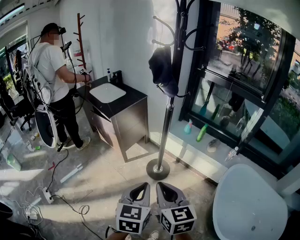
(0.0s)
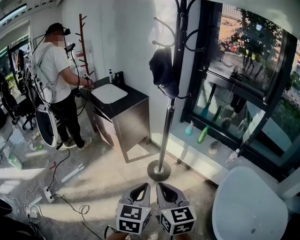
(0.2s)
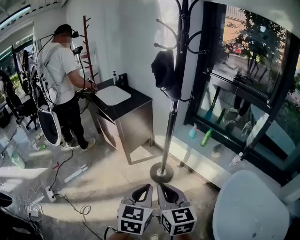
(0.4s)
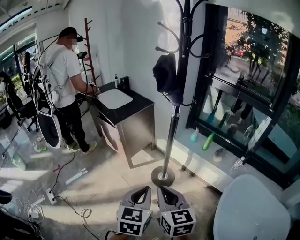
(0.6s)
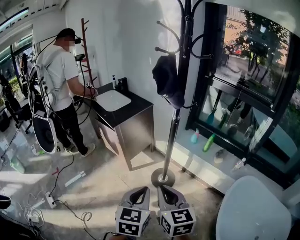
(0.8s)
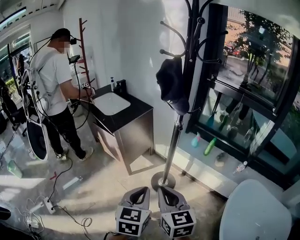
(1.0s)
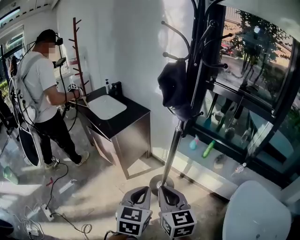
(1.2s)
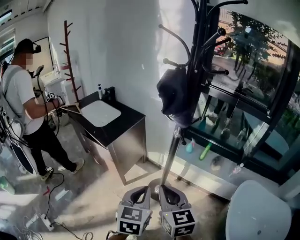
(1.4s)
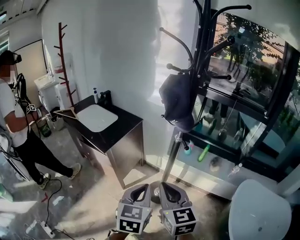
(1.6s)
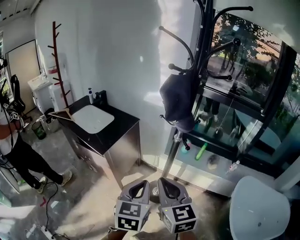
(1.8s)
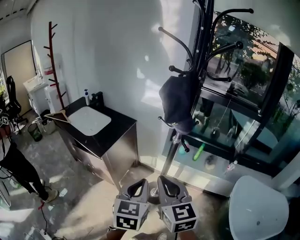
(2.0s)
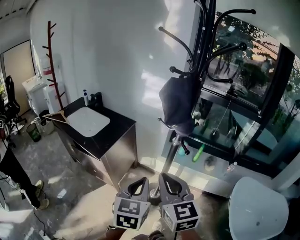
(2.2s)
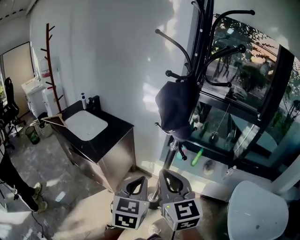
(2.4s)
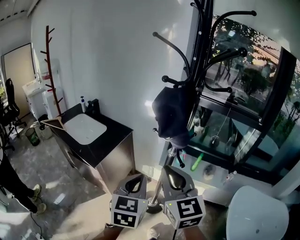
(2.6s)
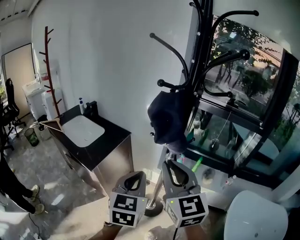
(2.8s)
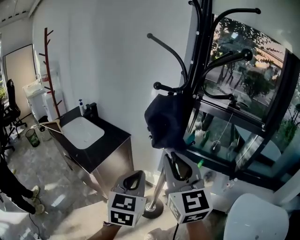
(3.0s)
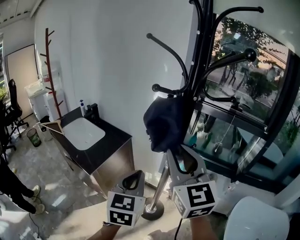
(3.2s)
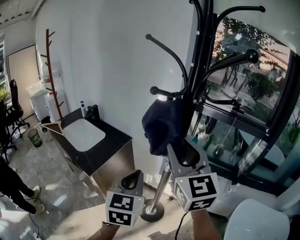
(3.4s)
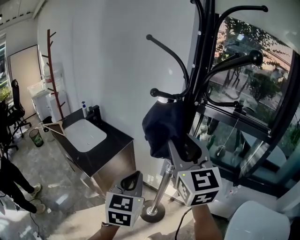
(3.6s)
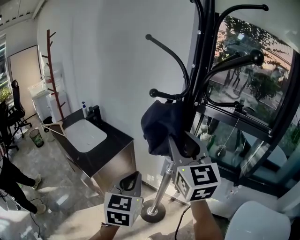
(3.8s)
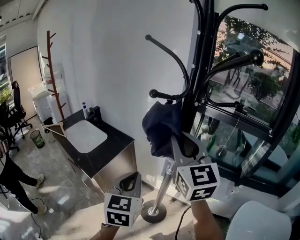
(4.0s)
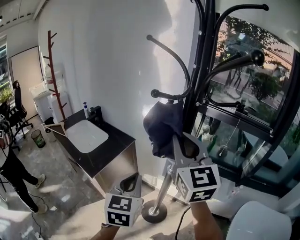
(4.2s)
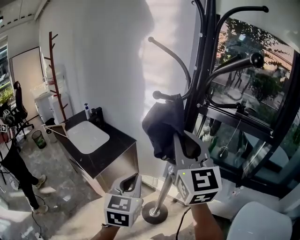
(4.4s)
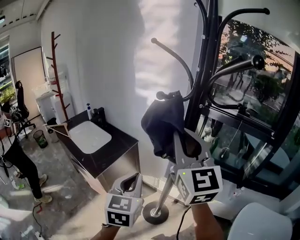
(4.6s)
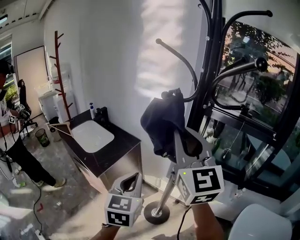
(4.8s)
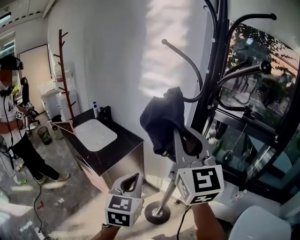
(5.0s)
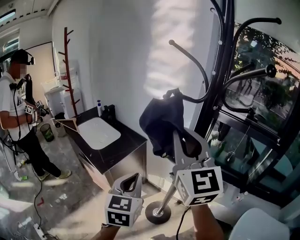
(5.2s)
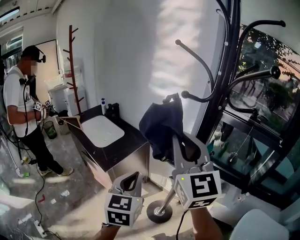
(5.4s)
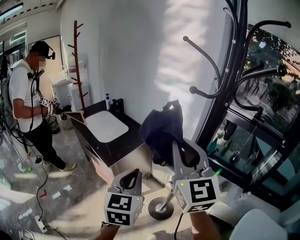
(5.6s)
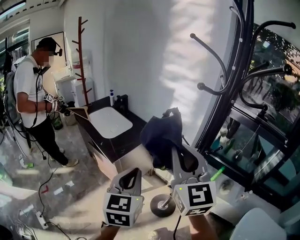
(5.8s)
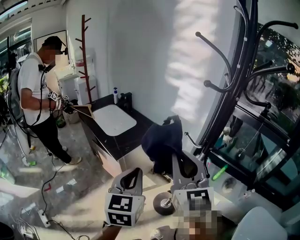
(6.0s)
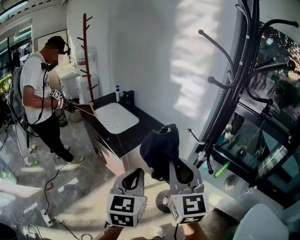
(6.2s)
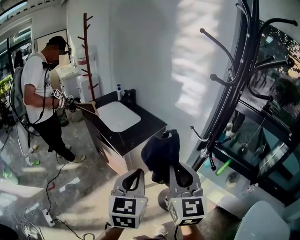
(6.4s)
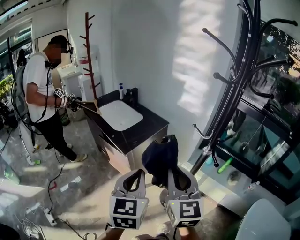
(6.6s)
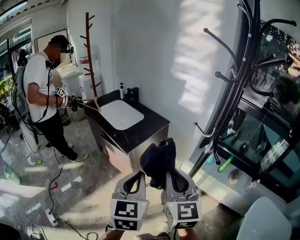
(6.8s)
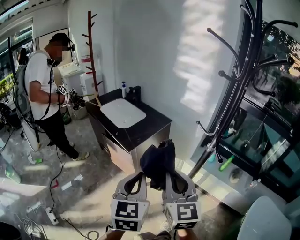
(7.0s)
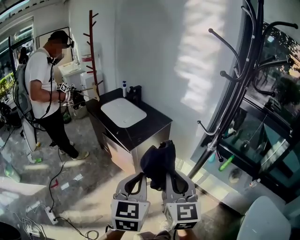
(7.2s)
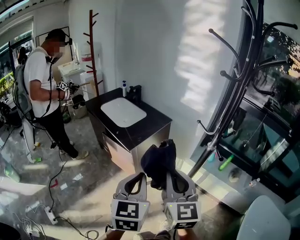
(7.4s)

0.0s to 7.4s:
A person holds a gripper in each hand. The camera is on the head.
0.0s to 1.4s: Both grippers move forward, some 20 cm.
1.4s to 3.0s: The grippers both shift forward and upward by about 25 cm. The right gripper rotates some 20 degrees.
3.0s to 4.4s: The right gripper heads forward and upward, covering about 10 cm, and opens and closes again.
4.4s to 6.0s: The left gripper travels to the left and backward by approximately 15 cm, while the right gripper heads to the left, backward and downward, covering approximately 15 cm.
6.0s to 7.4s: The left gripper shifts approximately 10 cm backward and to the left, while the right gripper heads downward, backward and to the left, covering about 15 cm.

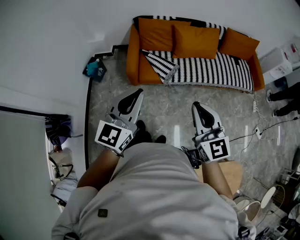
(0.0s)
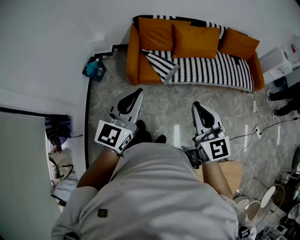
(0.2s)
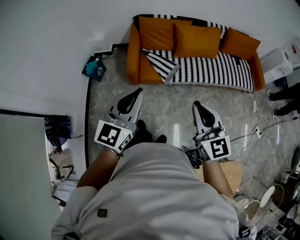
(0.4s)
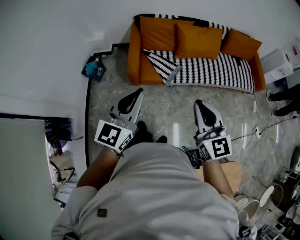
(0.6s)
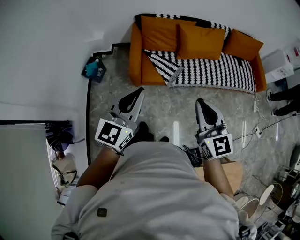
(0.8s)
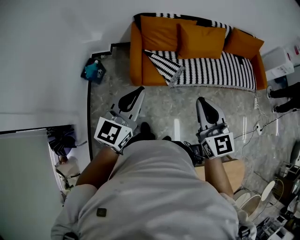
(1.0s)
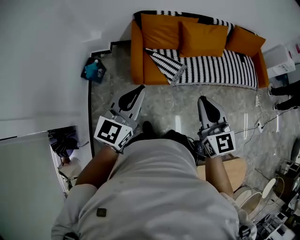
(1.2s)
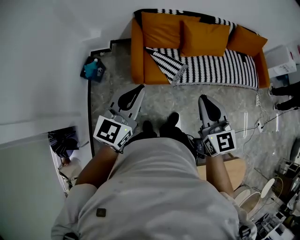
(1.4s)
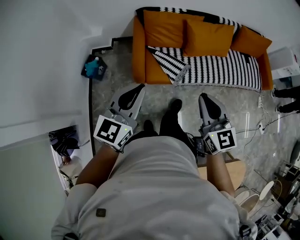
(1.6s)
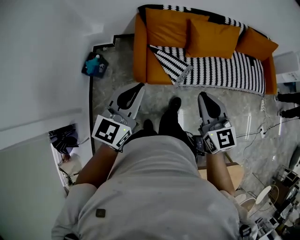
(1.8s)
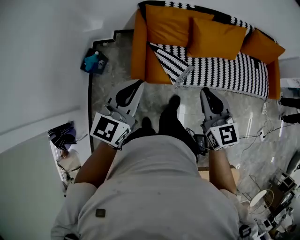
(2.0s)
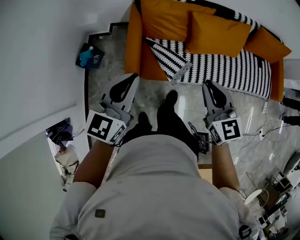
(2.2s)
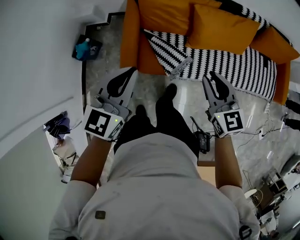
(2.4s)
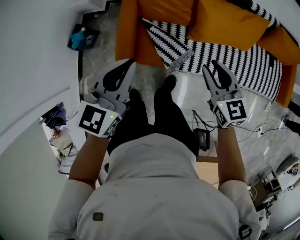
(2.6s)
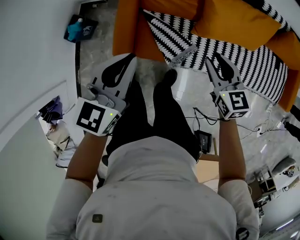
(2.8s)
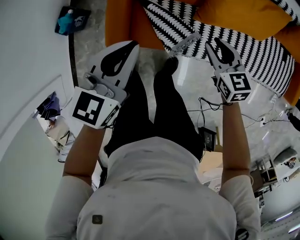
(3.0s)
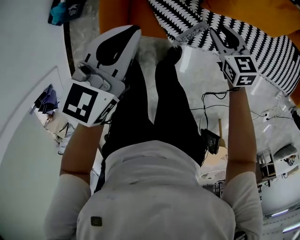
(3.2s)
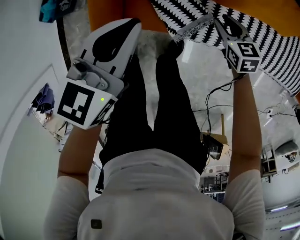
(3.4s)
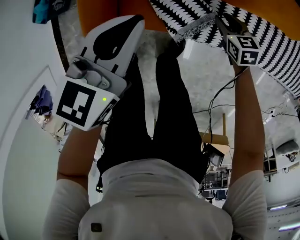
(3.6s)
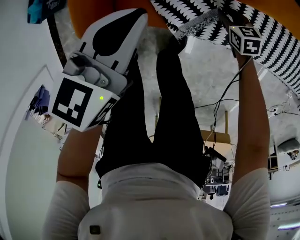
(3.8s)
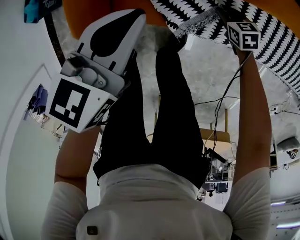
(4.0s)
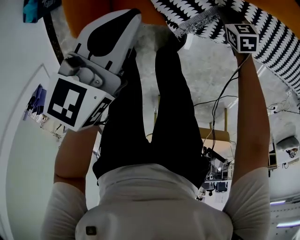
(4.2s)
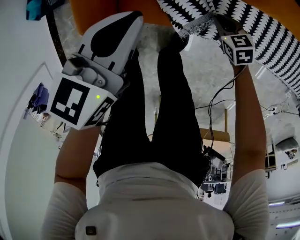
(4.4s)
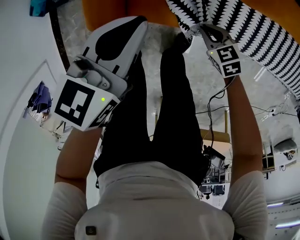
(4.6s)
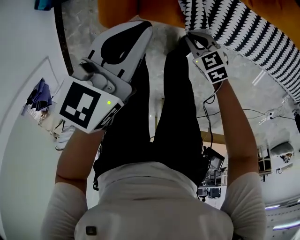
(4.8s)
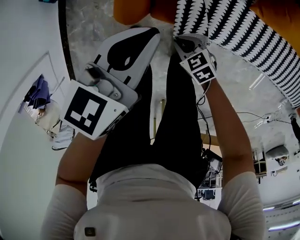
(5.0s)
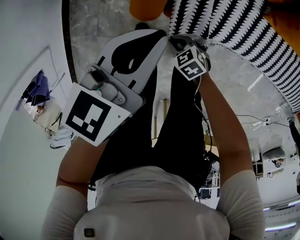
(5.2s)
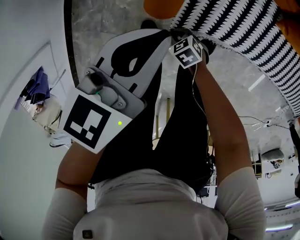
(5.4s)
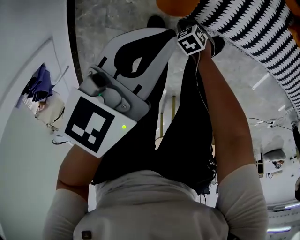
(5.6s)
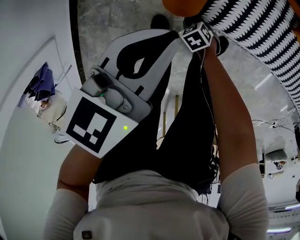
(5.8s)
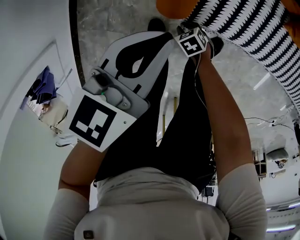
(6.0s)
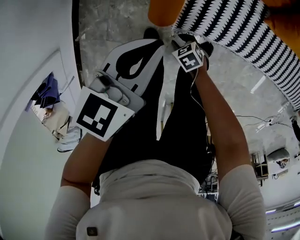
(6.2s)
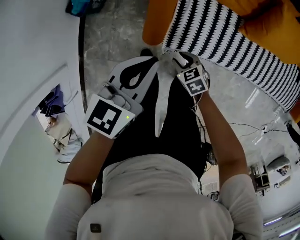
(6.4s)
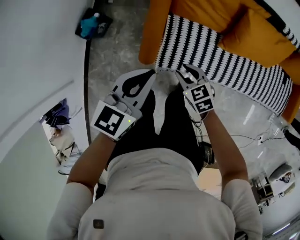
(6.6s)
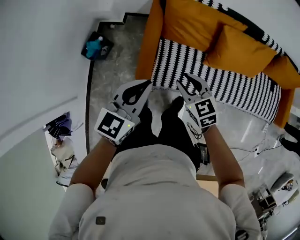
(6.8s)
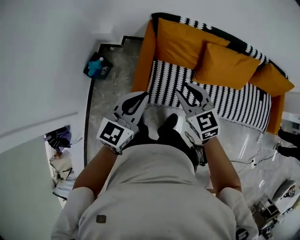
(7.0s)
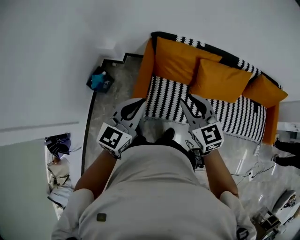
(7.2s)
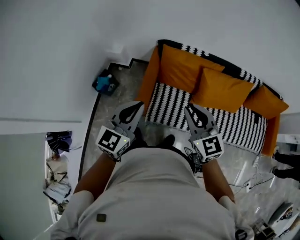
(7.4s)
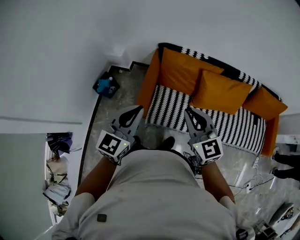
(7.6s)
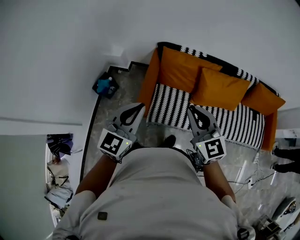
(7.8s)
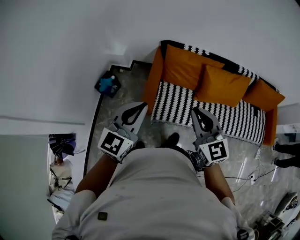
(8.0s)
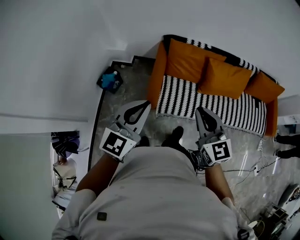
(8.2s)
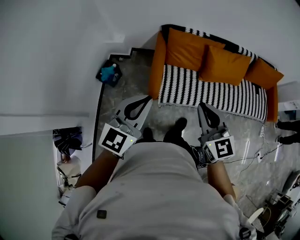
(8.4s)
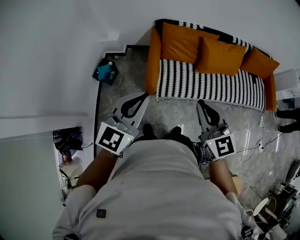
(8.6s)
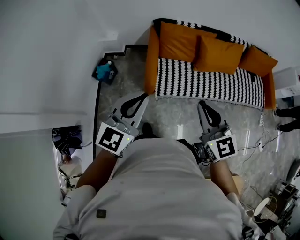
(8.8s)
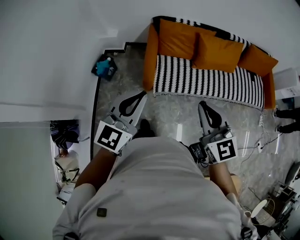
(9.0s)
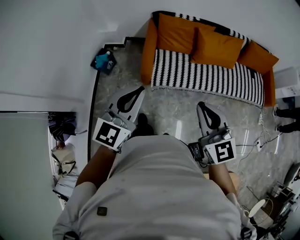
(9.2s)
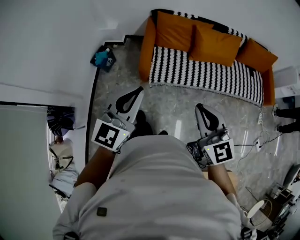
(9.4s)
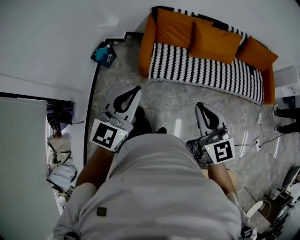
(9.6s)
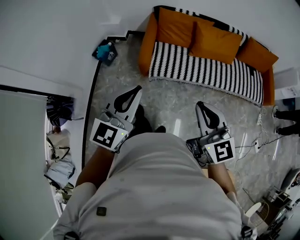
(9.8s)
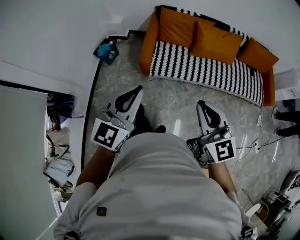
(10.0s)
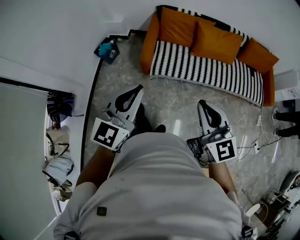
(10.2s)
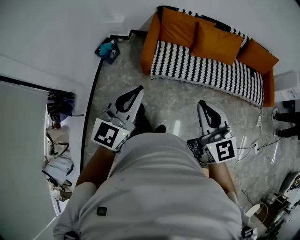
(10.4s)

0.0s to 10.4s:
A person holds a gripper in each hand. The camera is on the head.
0.0s to 1.4s: Both grippers travel together forward and to the left, about 20 cm.
1.4s to 3.0s: Both grippers travel together forward and downward, roughly 50 cm. The left gripper swivels about 20 degrees. Meanwhile the right gripper swivels about 30 degrees, and opens up.
3.0s to 4.4s: The two grippers go roughly 30 cm downward. The right gripper turns by approximately 20 degrees, and closes its fingers.
4.4s to 6.0s: The left gripper shifts by roughly 10 cm. The right gripper ends up some 20 cm from where it was, and turns by approximately 20 degrees.
6.0s to 7.4s: The left gripper is displaced upward by roughly 50 cm, and rotates about 40 degrees; the right gripper moves upward, approximately 80 cm, and angles its fingers upward, by about 50 degrees.
7.4s to 9.0s: The right gripper moves backward, some 30 cm. The left gripper is displaced backward and to the left by about 25 cm.
9.0s to 10.4s: The grippers both shift backward and to the right by about 15 cm.

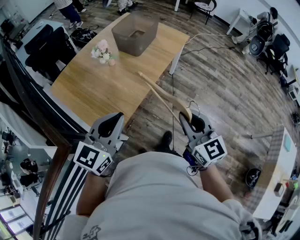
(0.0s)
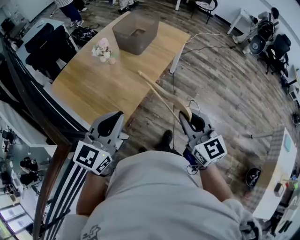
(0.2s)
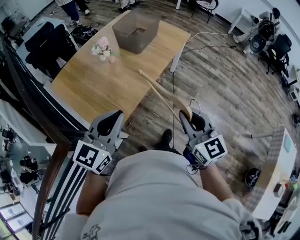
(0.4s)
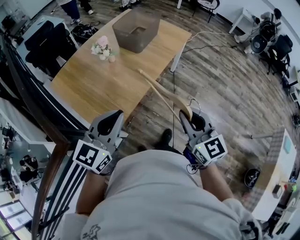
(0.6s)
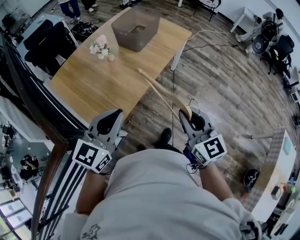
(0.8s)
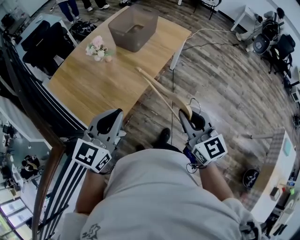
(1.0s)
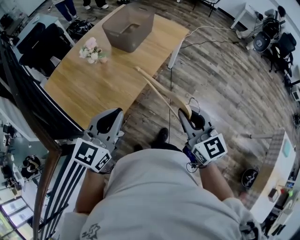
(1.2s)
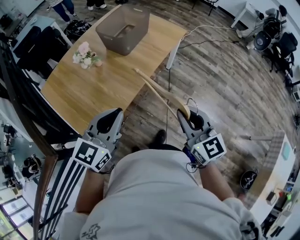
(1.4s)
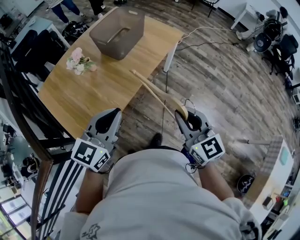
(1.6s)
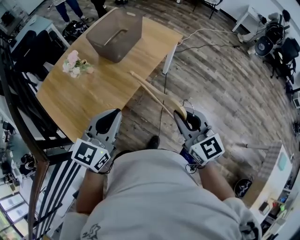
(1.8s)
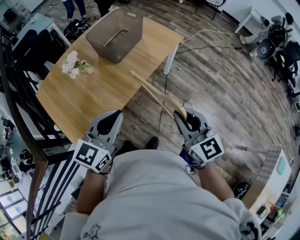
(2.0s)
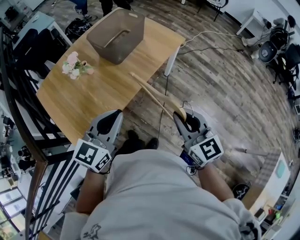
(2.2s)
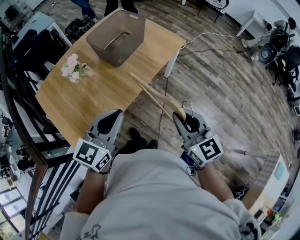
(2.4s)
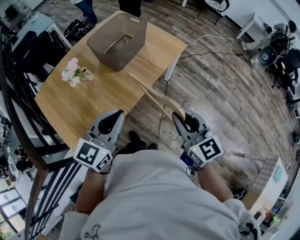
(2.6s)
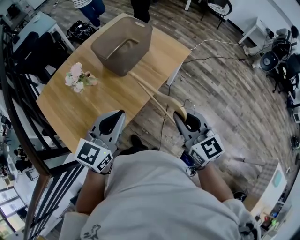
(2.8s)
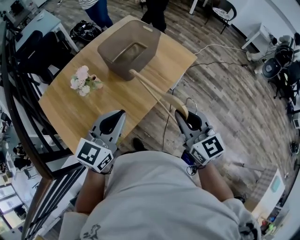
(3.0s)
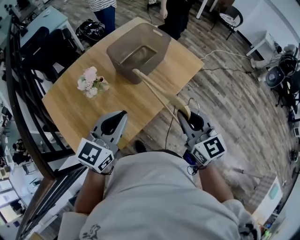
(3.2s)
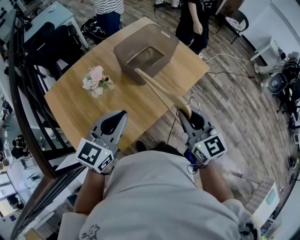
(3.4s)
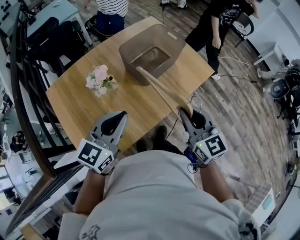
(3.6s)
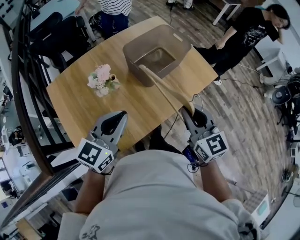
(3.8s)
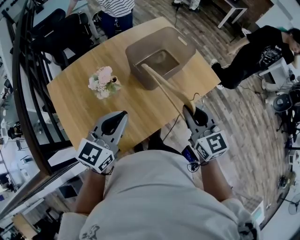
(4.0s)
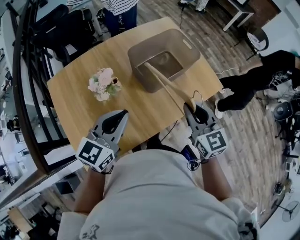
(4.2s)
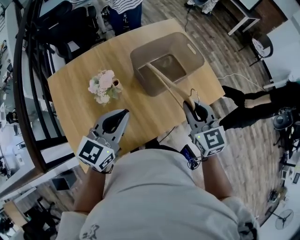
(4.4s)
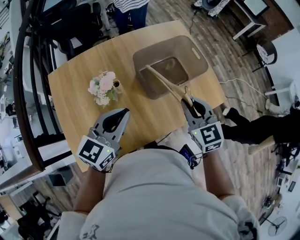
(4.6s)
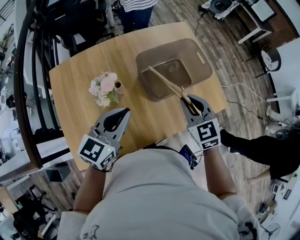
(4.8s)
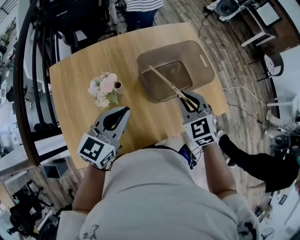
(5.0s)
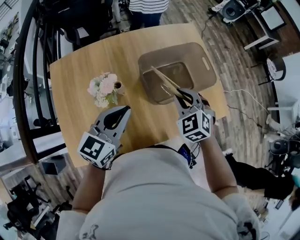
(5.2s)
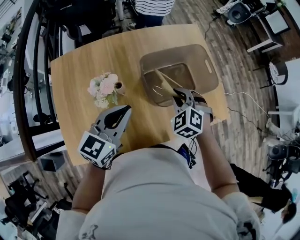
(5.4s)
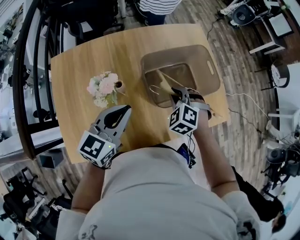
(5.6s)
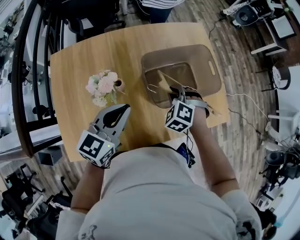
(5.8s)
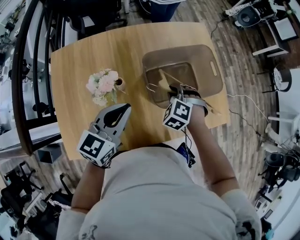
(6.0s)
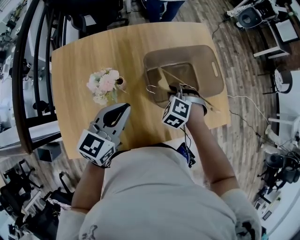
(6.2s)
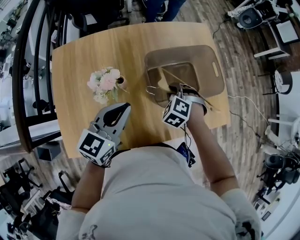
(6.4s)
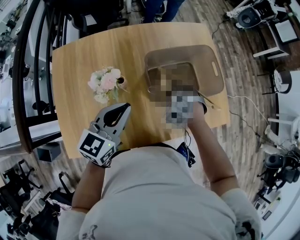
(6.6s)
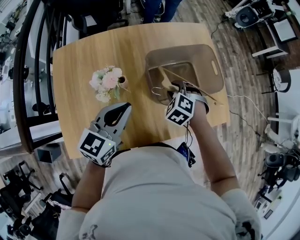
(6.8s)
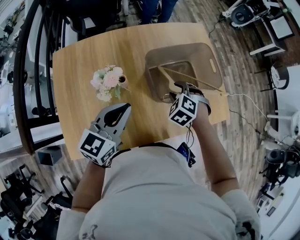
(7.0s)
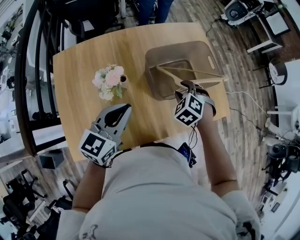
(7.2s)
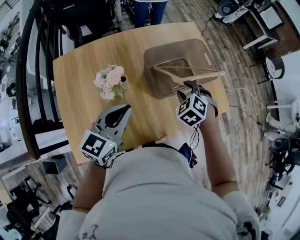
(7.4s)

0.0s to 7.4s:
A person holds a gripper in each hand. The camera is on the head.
0.0s to 1.4s: Both grippers move forward and to the right, some 15 cm.
1.4s to 3.0s: The grippers both shift forward by roughly 20 cm.
3.0s to 4.4s: The left gripper moves forward and to the left, approximately 15 cm; the right gripper shifts about 20 cm forward.
4.4s to 6.0s: The left gripper shifts roughly 10 cm forward and downward. Meanwhile the right gripper moves downward, forward and to the left, some 25 cm, and twists some 50 degrees counterclockwise, seen from behind.
6.0s to 7.4s: The right gripper shifts about 5 cm upward, and opens up, while the left gripper is displaced backward by approximately 5 cm.
